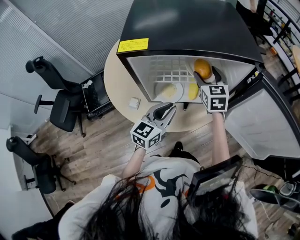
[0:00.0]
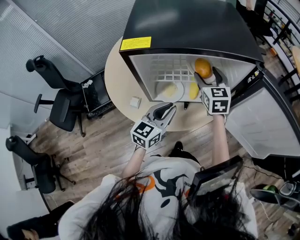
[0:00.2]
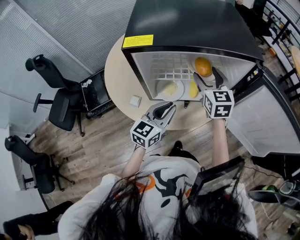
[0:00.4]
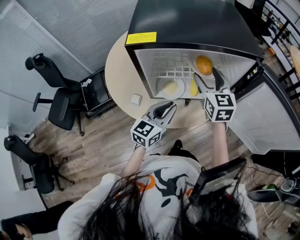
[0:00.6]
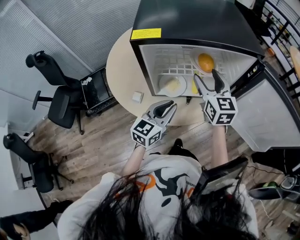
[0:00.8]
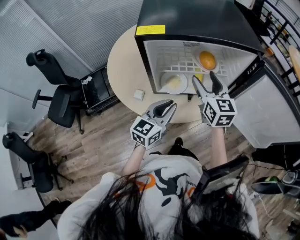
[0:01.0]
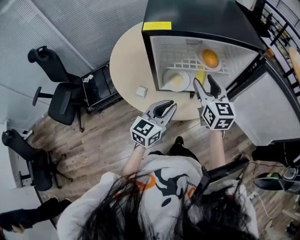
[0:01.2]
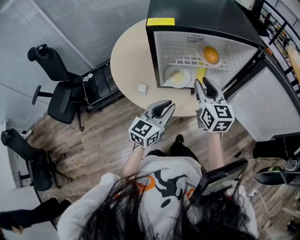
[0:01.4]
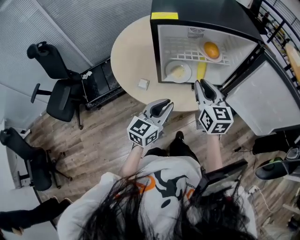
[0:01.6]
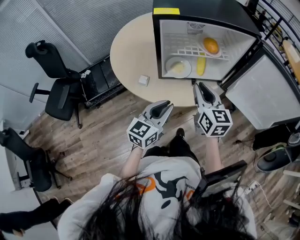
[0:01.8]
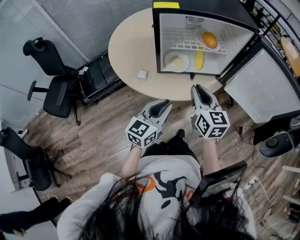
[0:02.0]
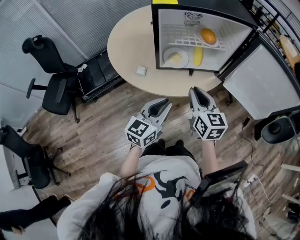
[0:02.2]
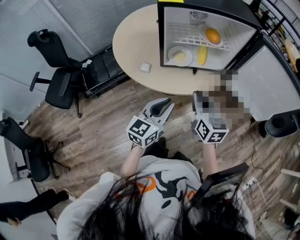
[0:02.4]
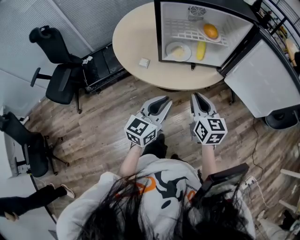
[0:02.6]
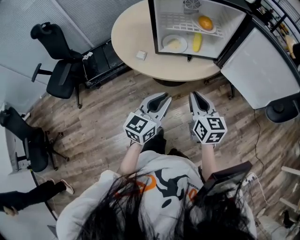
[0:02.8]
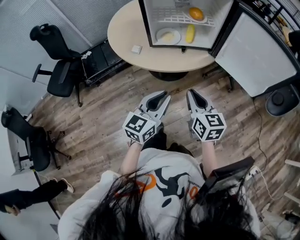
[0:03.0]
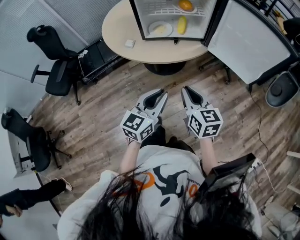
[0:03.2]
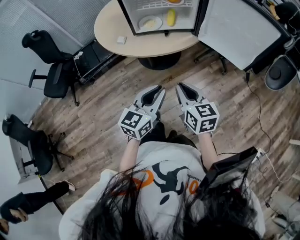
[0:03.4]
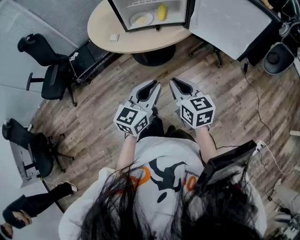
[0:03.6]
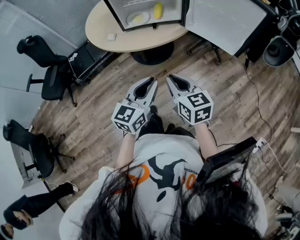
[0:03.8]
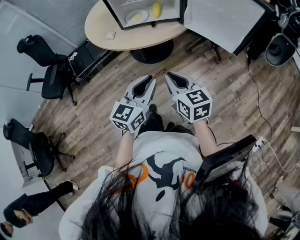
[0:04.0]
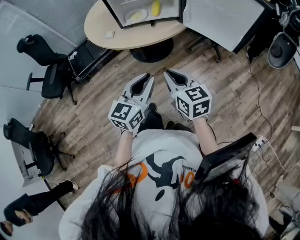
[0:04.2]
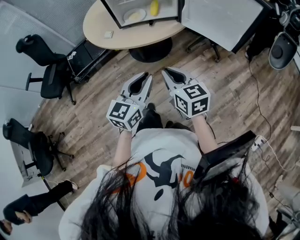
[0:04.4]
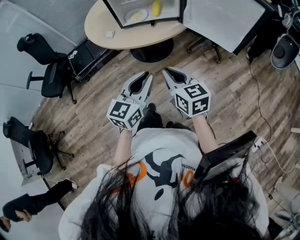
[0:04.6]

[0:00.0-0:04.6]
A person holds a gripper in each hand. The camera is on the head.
0:00.0 to 0:01.6: The left gripper travels backward and to the left by roughly 15 cm, while the right gripper goes approximately 20 cm backward, and closes its fingers.
0:01.6 to 0:03.0: The right gripper travels backward by some 25 cm, while the left gripper shifts about 20 cm backward and to the right.
0:03.0 to 0:04.6: The right gripper is displaced backward by approximately 10 cm; the left gripper heads backward and to the right, covering about 10 cm.

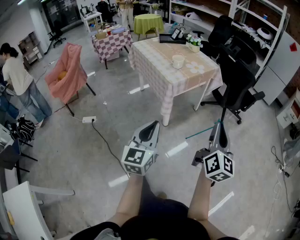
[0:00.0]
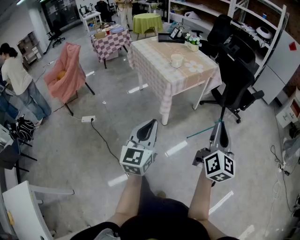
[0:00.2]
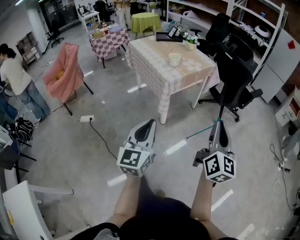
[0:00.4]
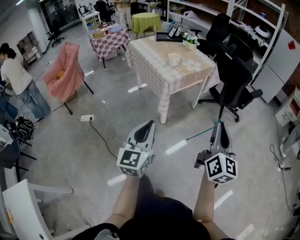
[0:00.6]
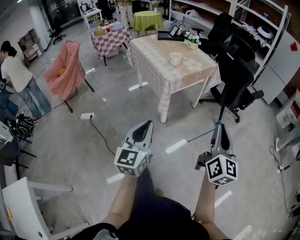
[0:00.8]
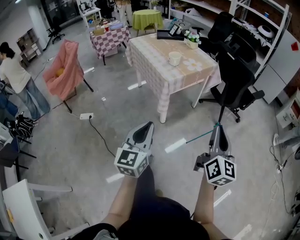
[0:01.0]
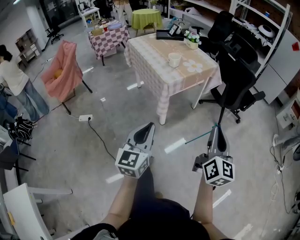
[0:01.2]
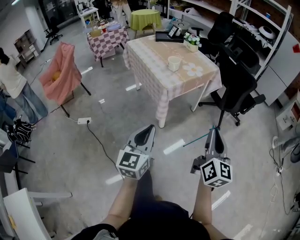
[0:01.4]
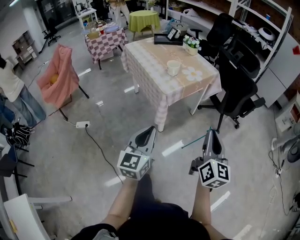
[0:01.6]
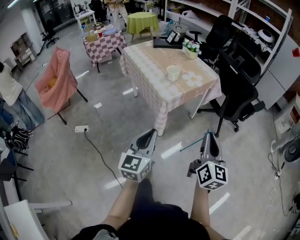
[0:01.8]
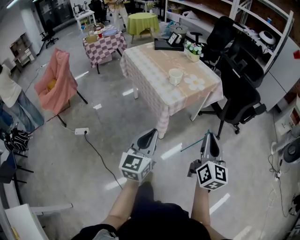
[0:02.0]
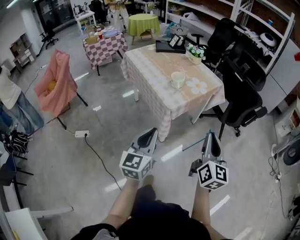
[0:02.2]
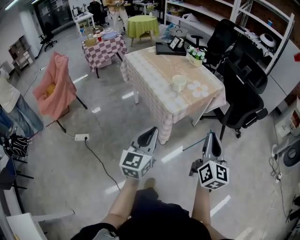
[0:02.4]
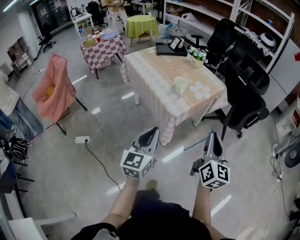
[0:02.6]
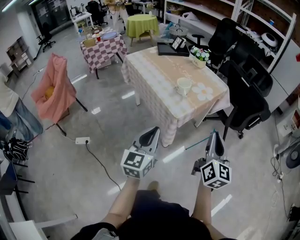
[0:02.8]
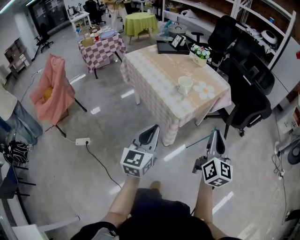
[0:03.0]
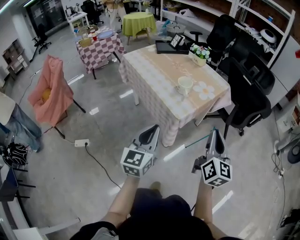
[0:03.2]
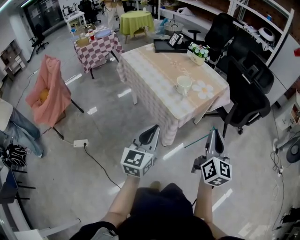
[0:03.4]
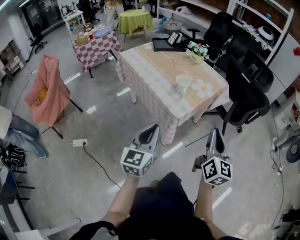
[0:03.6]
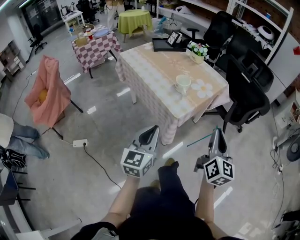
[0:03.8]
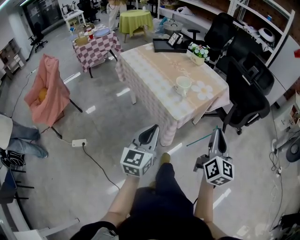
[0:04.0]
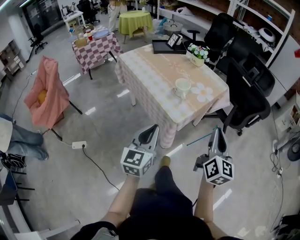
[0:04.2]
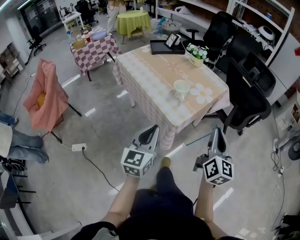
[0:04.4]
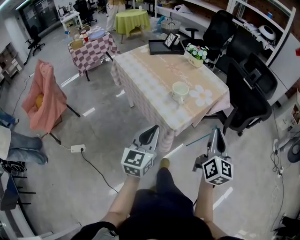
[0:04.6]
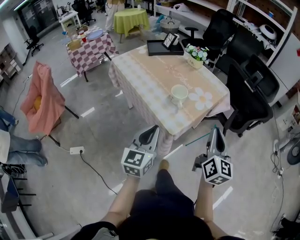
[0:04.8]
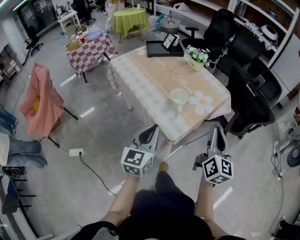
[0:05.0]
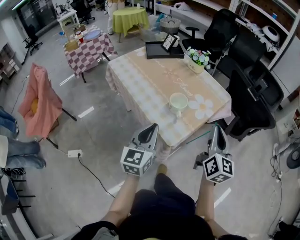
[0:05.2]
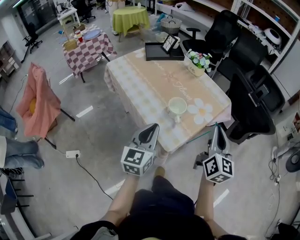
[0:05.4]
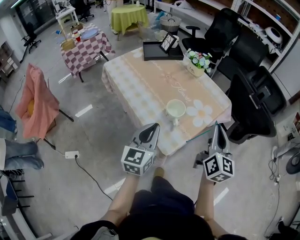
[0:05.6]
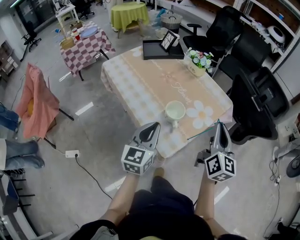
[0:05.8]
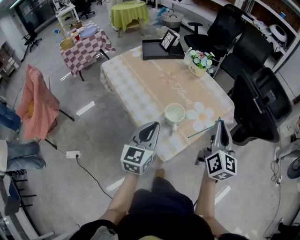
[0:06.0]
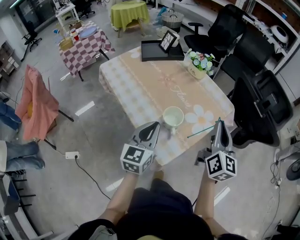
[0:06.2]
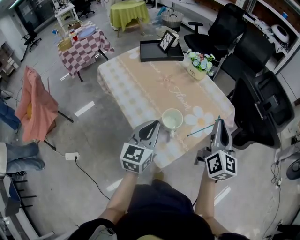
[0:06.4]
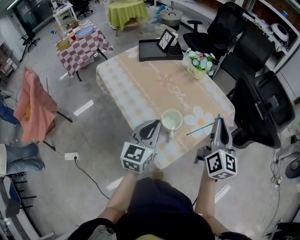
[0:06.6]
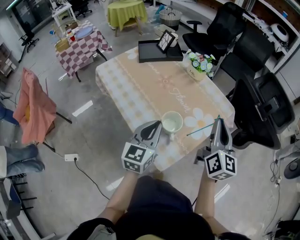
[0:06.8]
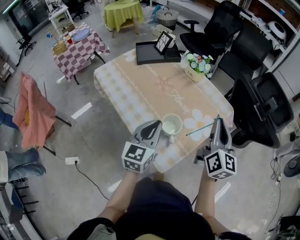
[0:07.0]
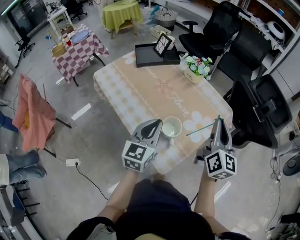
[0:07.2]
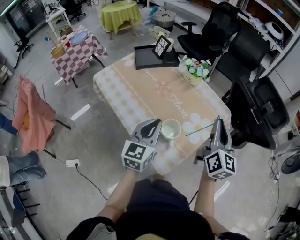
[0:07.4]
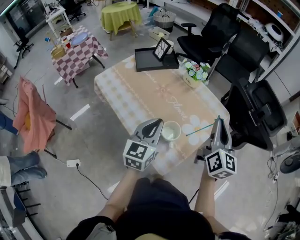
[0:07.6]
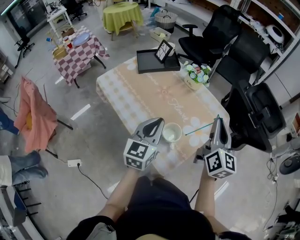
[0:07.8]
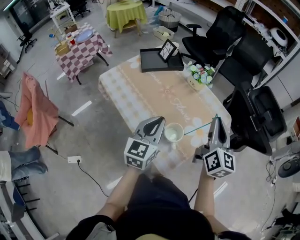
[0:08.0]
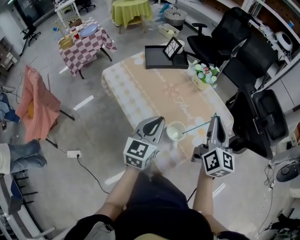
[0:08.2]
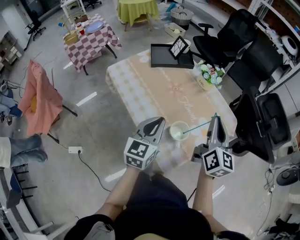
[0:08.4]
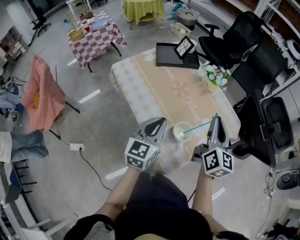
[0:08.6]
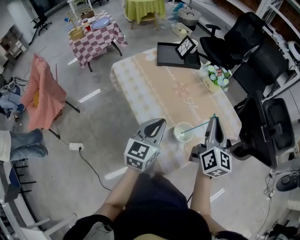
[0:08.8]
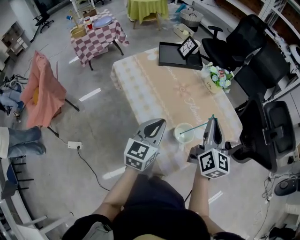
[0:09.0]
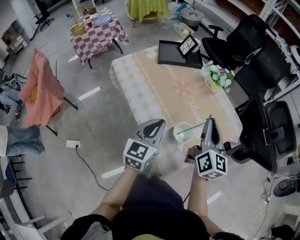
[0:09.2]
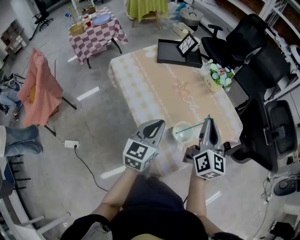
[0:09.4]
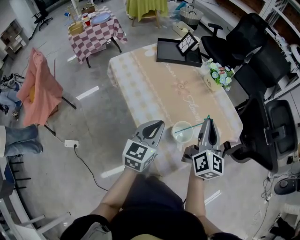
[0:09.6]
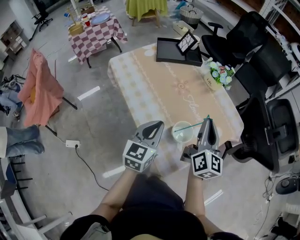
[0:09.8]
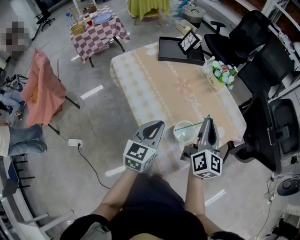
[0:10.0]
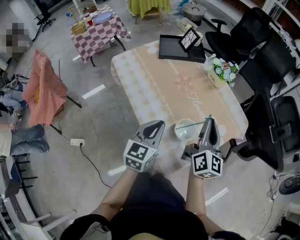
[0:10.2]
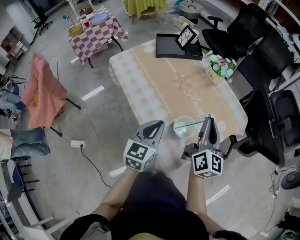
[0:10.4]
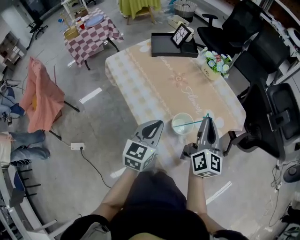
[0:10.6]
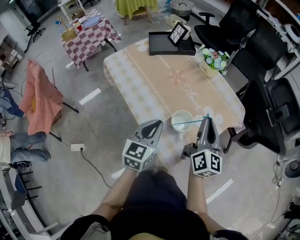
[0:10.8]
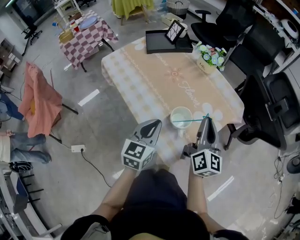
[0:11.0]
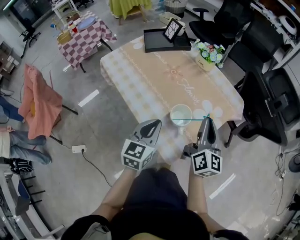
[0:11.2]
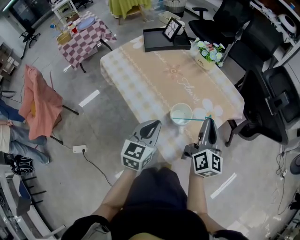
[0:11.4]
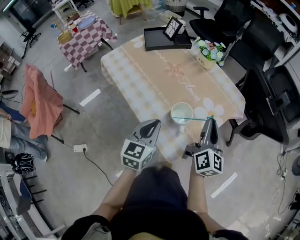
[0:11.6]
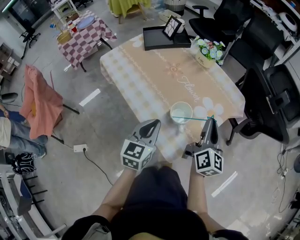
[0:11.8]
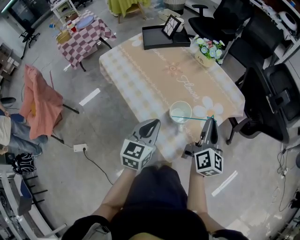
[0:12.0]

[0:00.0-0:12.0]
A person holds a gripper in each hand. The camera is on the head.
0:00.0 to 0:01.6: Both grippers move forward, about 10 cm.
0:01.6 to 0:03.0: Both grippers move forward and to the left, about 20 cm.
0:03.0 to 0:04.4: The grippers both shift forward by approximately 5 cm.
0:04.4 to 0:06.0: Both grippers travel together forward, roughly 25 cm.
0:06.0 to 0:07.6: The two grippers go about 10 cm forward and upward.
0:07.6 to 0:09.0: The right gripper goes some 10 cm to the left. Meanwhile the left gripper heads to the left, covering approximately 5 cm.
0:09.0 to 0:10.4: Both grippers move downward, about 5 cm.
0:10.4 to 0:12.0: The right gripper shifts approximately 5 cm to the right.

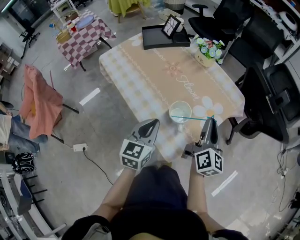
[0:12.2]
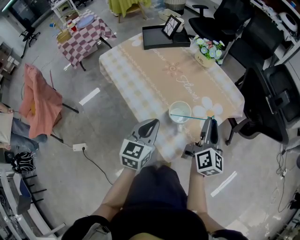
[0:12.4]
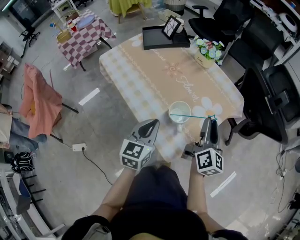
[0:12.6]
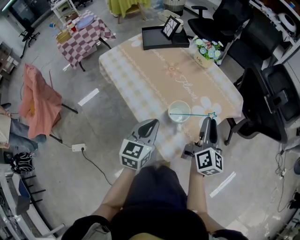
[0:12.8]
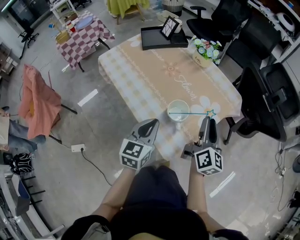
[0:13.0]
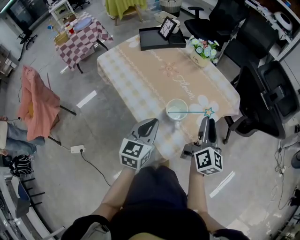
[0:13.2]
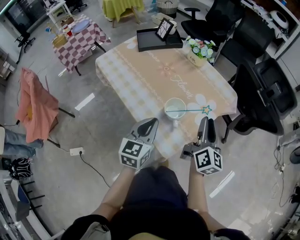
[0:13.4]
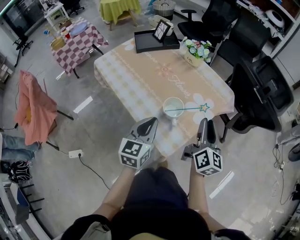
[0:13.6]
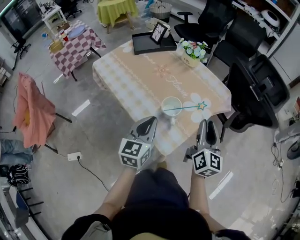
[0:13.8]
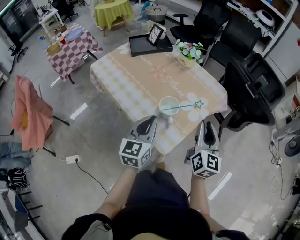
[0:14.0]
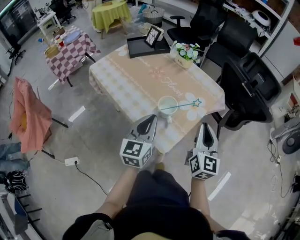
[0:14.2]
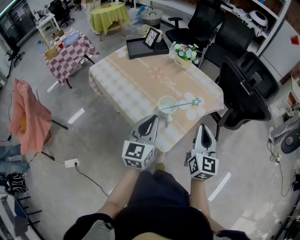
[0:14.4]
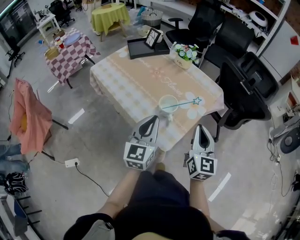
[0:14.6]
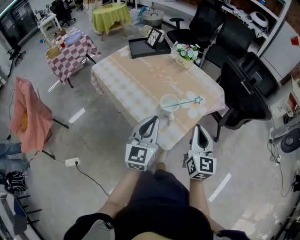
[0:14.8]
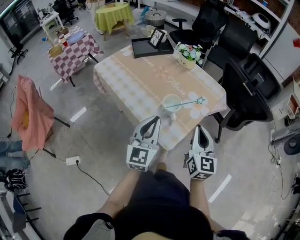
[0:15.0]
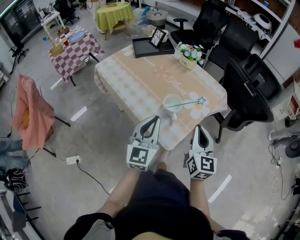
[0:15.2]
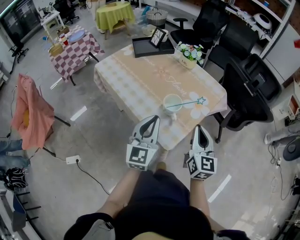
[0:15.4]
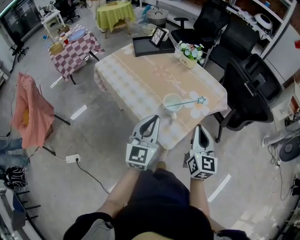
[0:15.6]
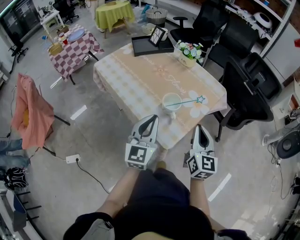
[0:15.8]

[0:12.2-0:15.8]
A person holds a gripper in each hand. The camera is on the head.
0:12.2 to 0:14.0: The right gripper shifts some 5 cm backward, and rotates about 20 degrees. Meanwhile the left gripper moves roughly 5 cm.
0:14.0 to 0:15.8: The right gripper ends up roughly 5 cm from where it was, and closes its fingers.

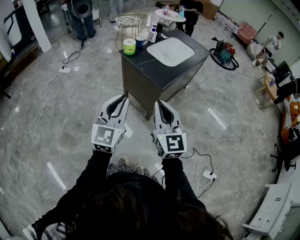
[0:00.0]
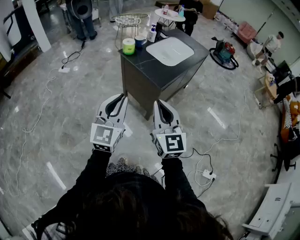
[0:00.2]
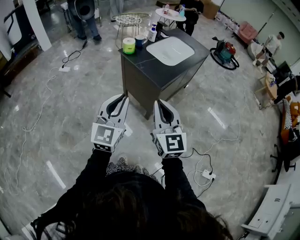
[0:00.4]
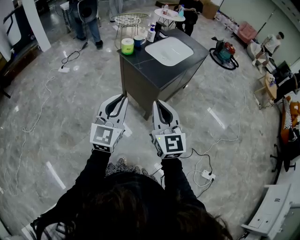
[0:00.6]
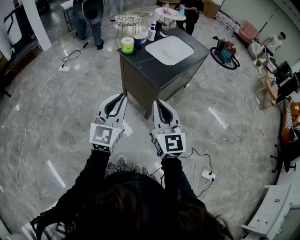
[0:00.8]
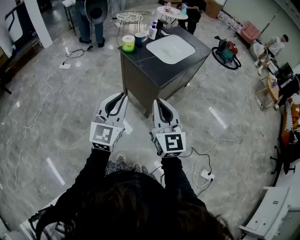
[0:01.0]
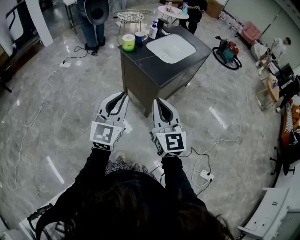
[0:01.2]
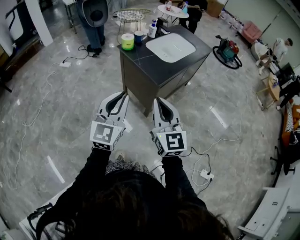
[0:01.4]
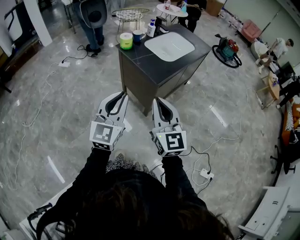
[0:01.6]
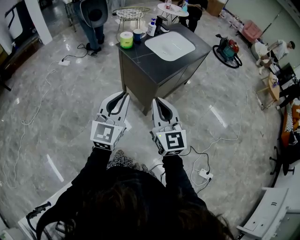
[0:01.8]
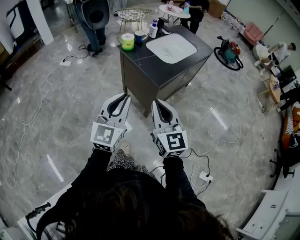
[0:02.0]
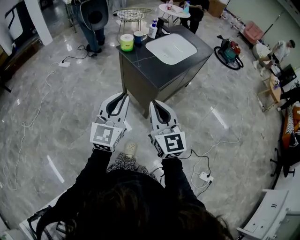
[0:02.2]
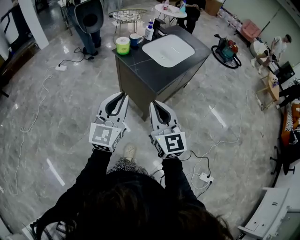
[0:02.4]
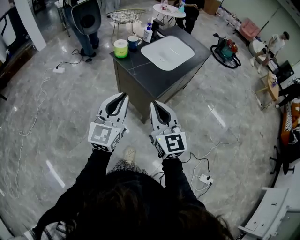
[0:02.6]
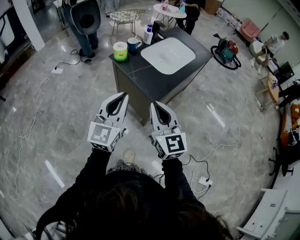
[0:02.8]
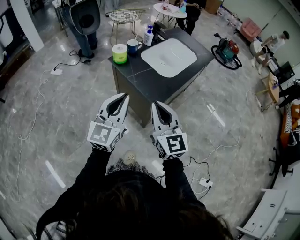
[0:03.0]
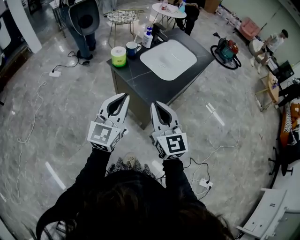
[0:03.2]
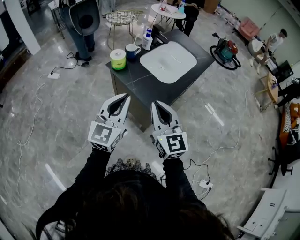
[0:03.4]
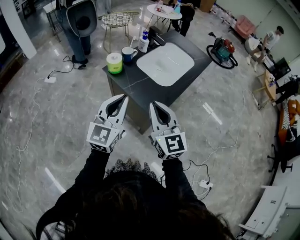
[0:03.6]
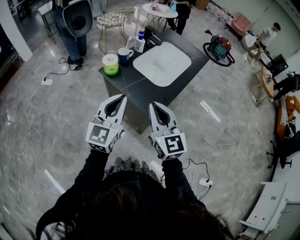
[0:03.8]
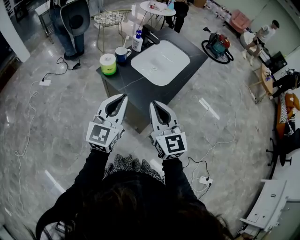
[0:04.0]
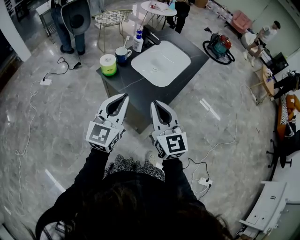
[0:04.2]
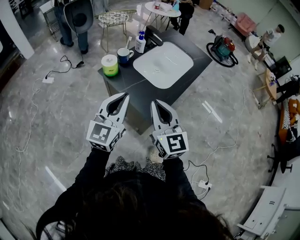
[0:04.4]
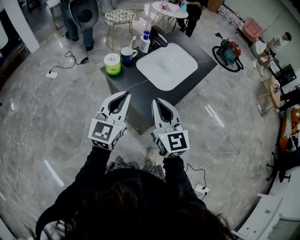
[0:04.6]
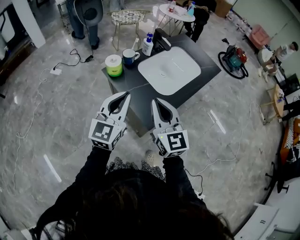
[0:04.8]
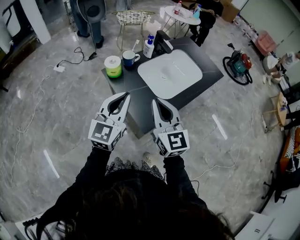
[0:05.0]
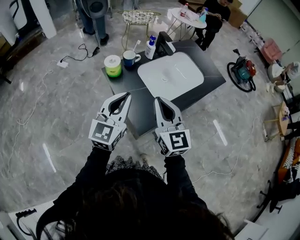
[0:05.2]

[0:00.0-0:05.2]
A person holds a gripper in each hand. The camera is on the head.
0:00.0 to 0:01.8: The grippers make only small movements.
0:01.8 to 0:03.4: Both grippers travel together forward, about 20 cm.
0:03.4 to 0:05.2: The two grippers go about 15 cm forward and to the right.
